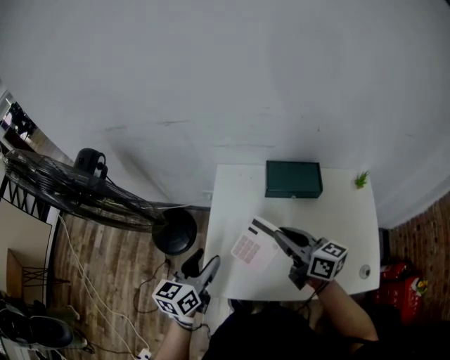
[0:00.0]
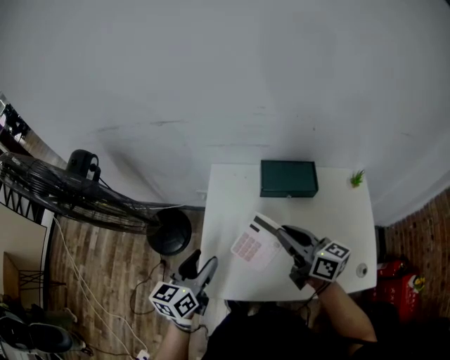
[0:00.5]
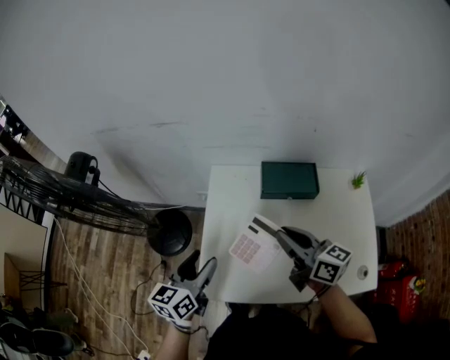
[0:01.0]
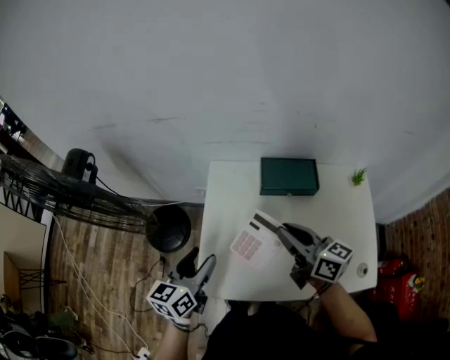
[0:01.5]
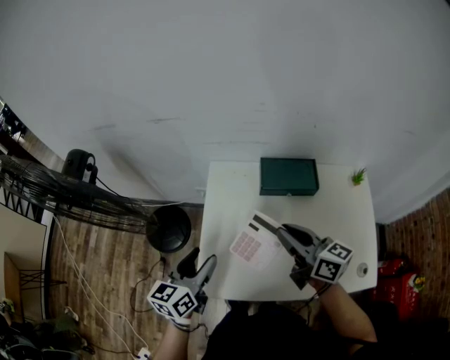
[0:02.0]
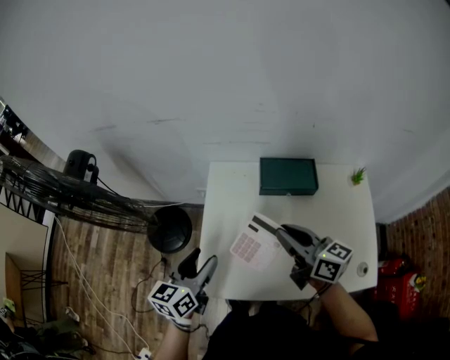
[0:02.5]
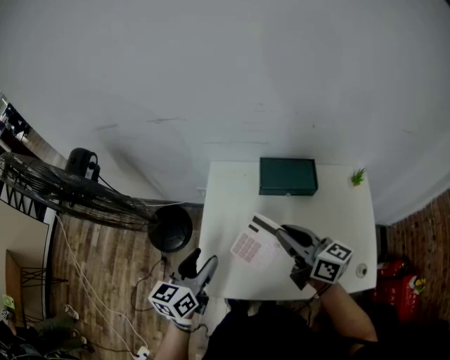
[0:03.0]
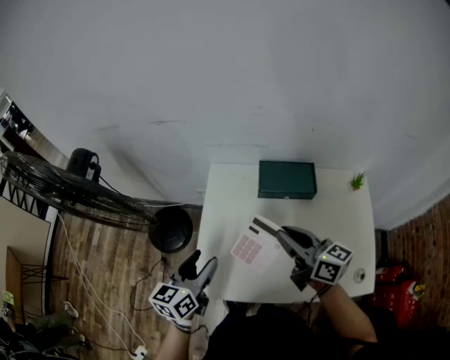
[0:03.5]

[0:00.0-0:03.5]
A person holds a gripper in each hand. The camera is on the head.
0:00.0 to 0:03.5: The grippers move only a little.

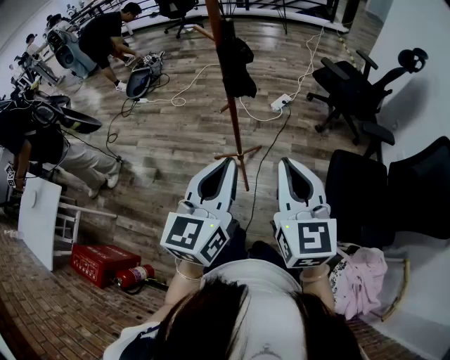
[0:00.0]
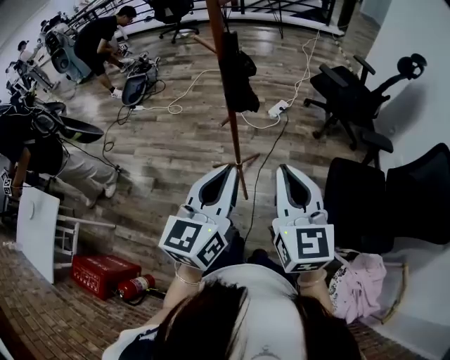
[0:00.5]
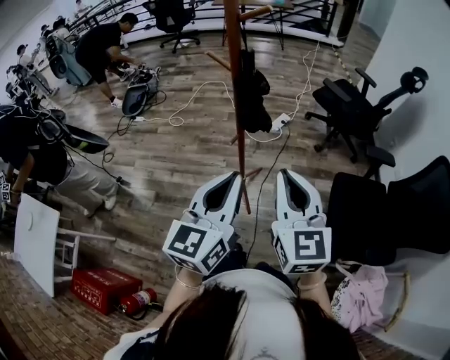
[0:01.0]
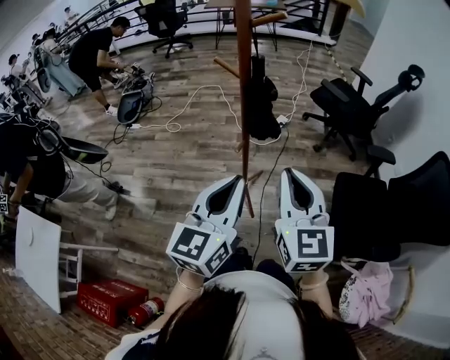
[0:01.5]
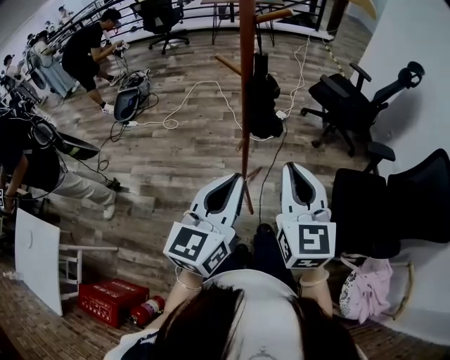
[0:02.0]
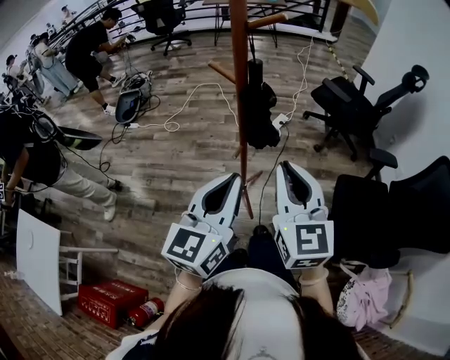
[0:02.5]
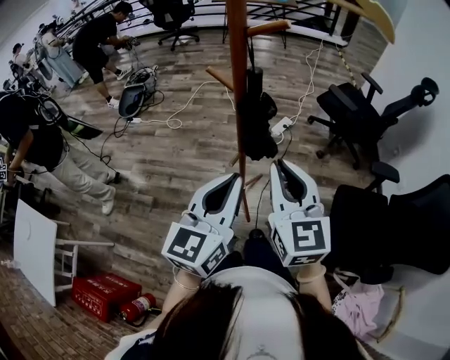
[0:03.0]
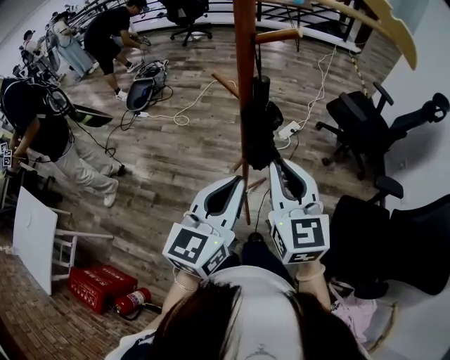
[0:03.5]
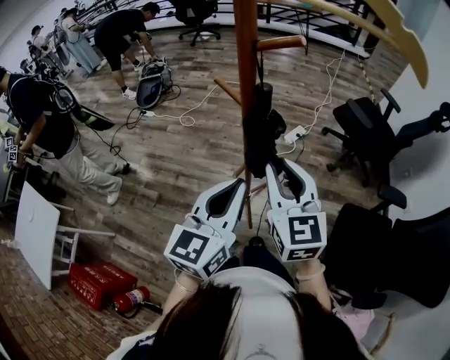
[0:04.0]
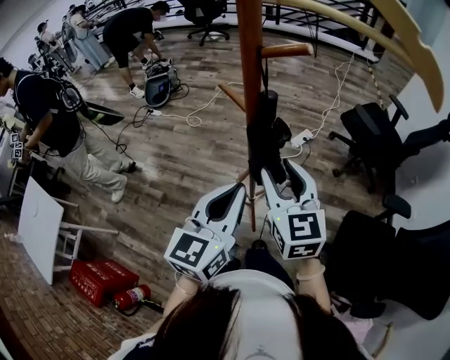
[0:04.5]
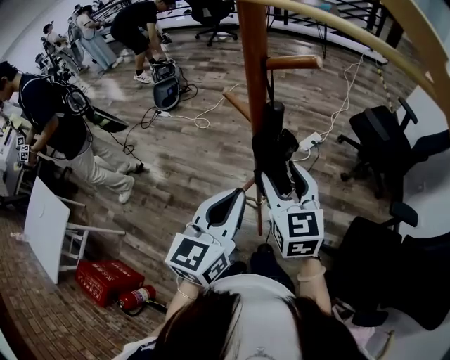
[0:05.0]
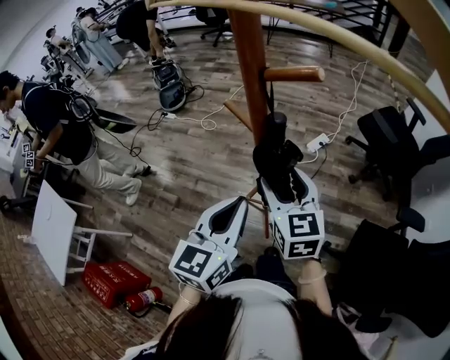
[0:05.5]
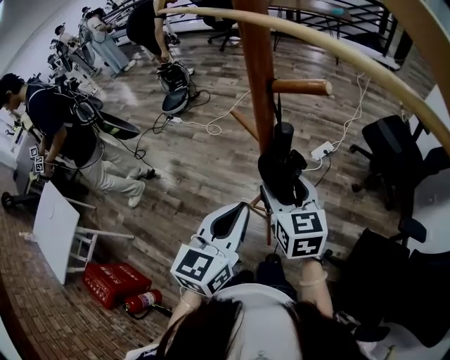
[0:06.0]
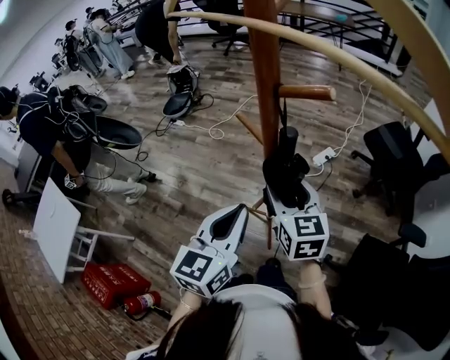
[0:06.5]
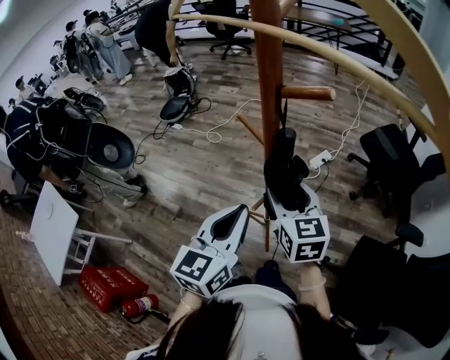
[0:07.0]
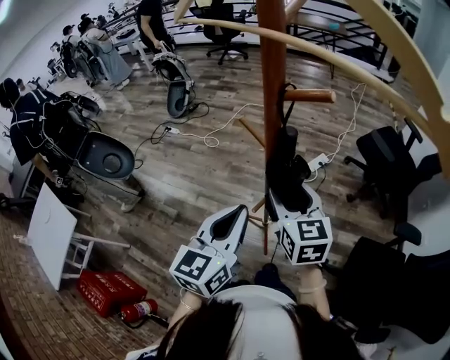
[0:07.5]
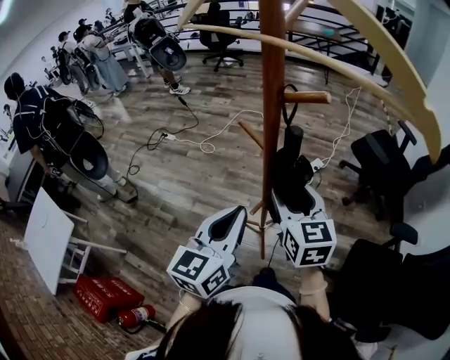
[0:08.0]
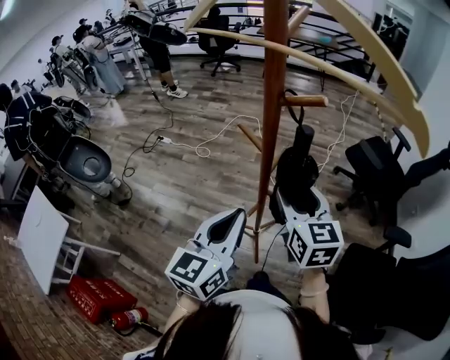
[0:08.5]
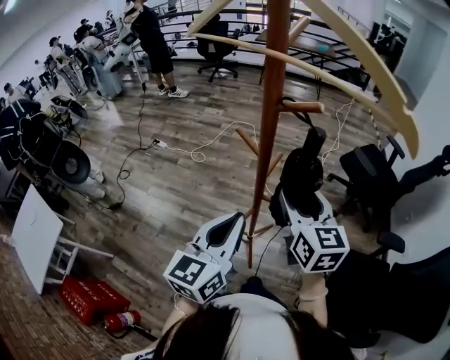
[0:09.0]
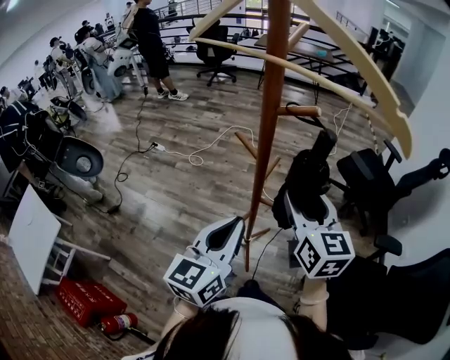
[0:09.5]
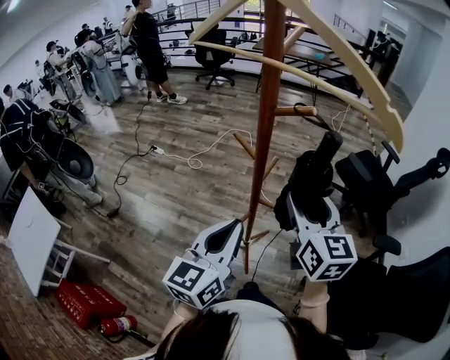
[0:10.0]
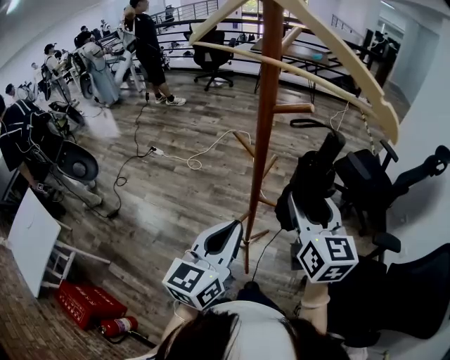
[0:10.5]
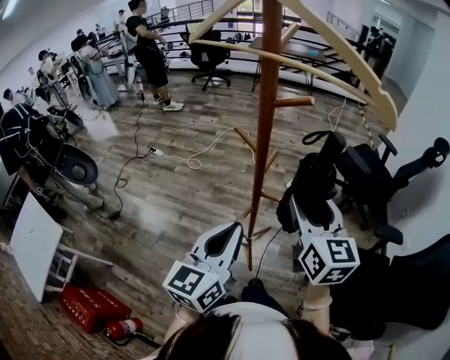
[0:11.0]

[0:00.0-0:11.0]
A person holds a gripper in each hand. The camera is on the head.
0:00.0 to 0:02.0: The grippers both shift to the left and forward by some 15 cm.
0:02.0 to 0:03.5: Both grippers travel together forward, approximately 10 cm.
0:03.5 to 0:05.5: The right gripper shifts some 10 cm forward and downward, and opens up, while the left gripper shifts about 5 cm forward.
0:05.5 to 0:07.5: The grippers make only small movements.
0:07.5 to 0:09.0: The right gripper travels upward by approximately 5 cm.
0:09.0 to 0:11.0: The right gripper travels backward by some 5 cm.

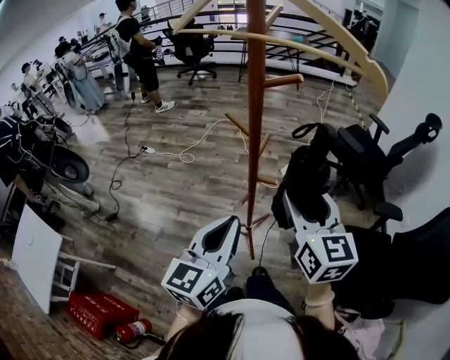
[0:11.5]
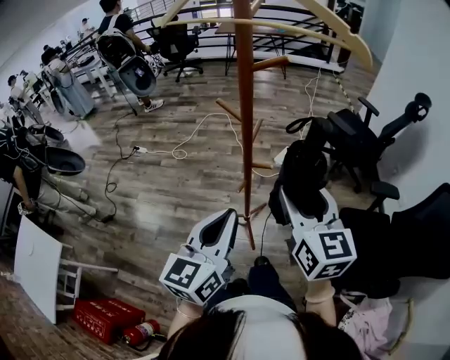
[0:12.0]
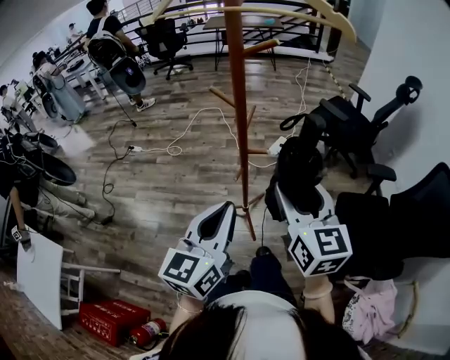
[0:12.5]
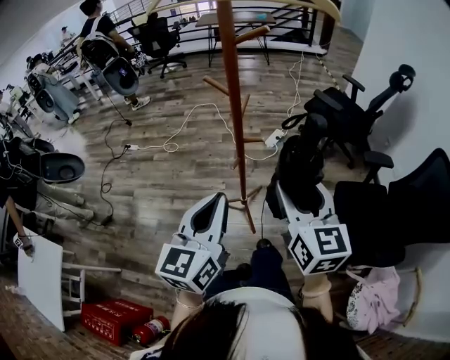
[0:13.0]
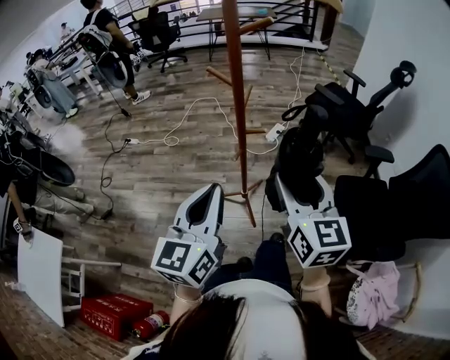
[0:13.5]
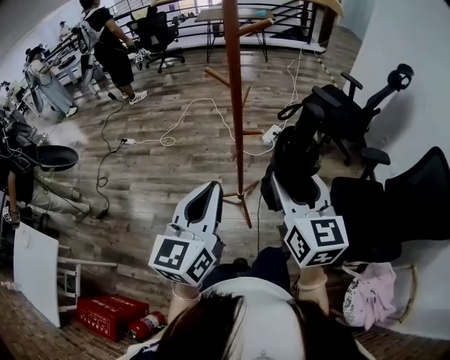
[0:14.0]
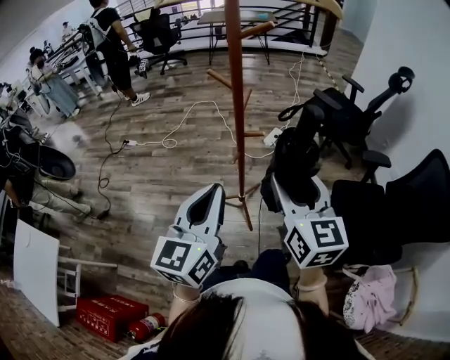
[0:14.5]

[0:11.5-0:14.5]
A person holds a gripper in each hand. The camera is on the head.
0:11.5 to 0:13.0: The left gripper is displaced backward by approximately 5 cm, while the right gripper moves backward, some 10 cm.
0:13.0 to 0:14.5: The grippers make only small movements.

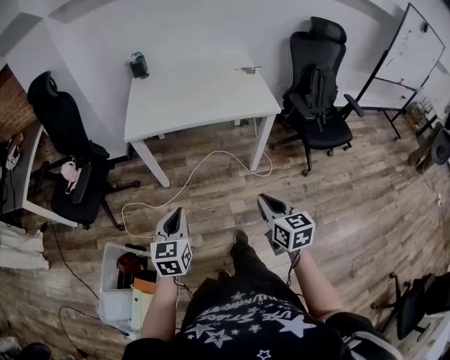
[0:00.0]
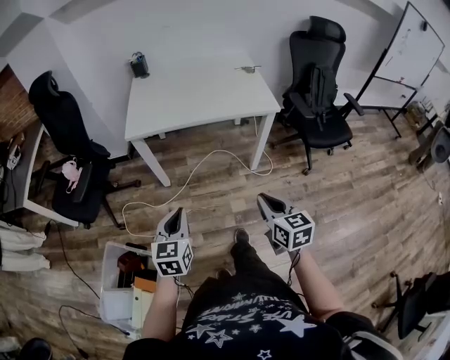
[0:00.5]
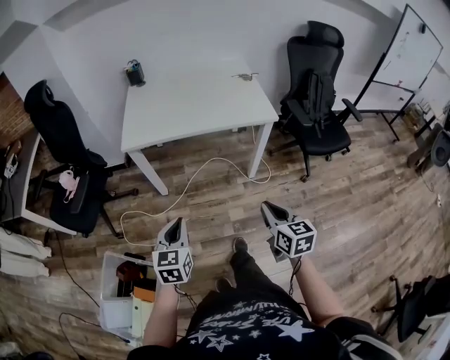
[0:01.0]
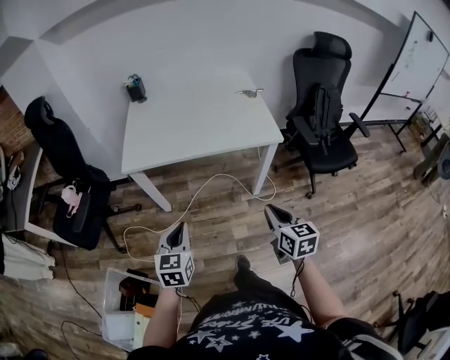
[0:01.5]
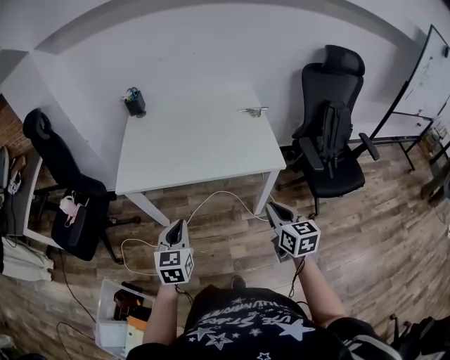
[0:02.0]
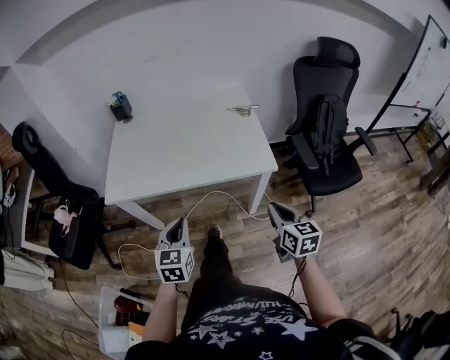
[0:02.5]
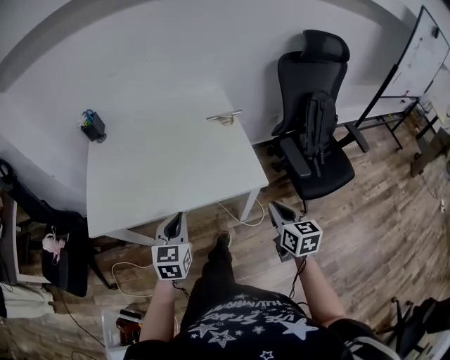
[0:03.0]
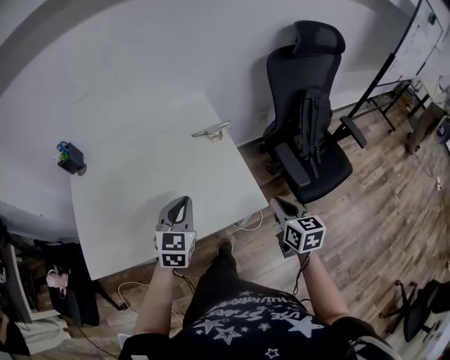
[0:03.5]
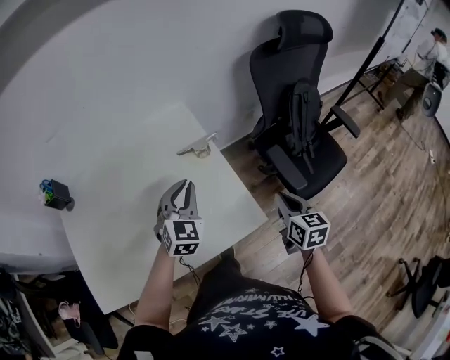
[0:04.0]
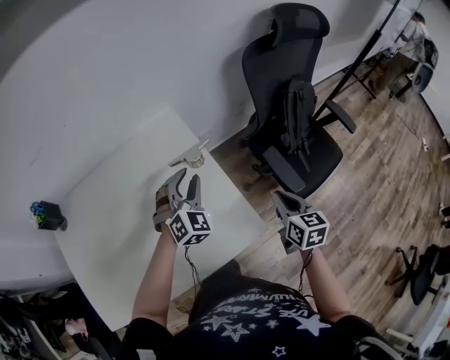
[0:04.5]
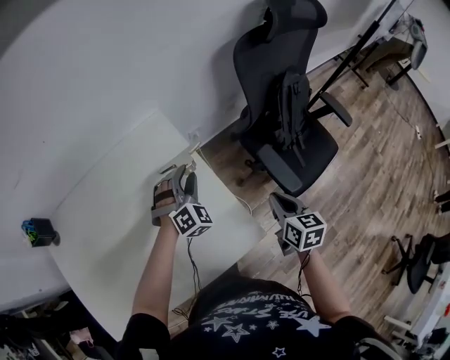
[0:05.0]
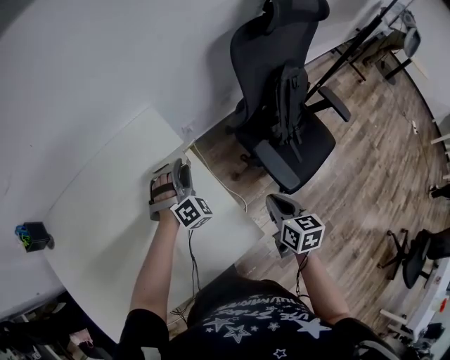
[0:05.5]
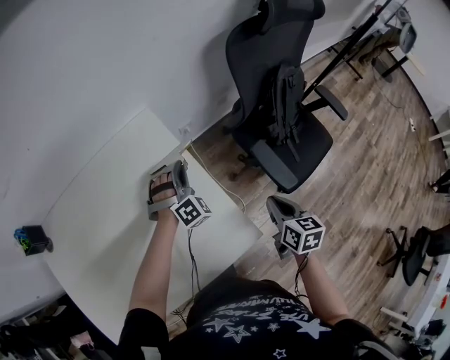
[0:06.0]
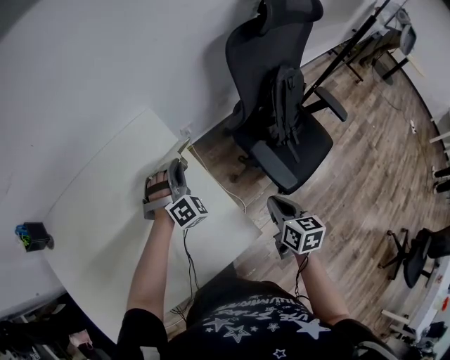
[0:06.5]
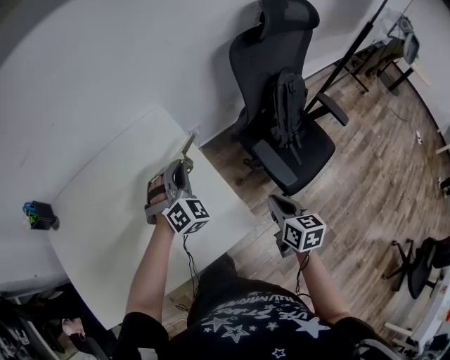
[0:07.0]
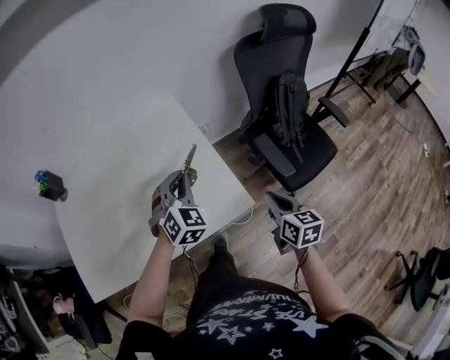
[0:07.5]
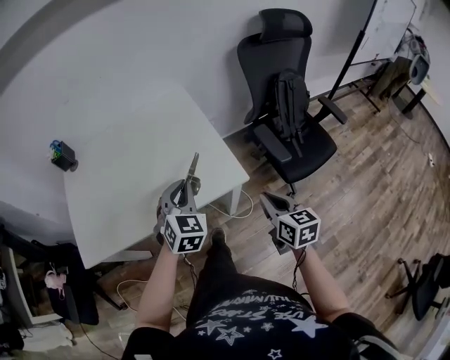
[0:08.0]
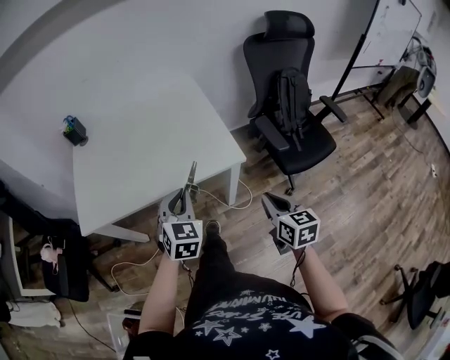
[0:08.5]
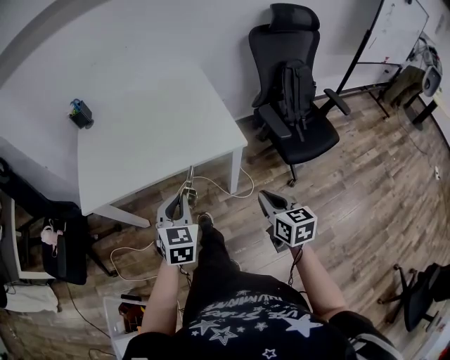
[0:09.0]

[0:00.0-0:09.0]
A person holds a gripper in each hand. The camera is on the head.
0:00.0 to 0:02.0: The two grippers go about 30 cm forward and to the right.
0:02.0 to 0:04.5: Both grippers are carried approximately 60 cm. The left gripper twists roughly 50 degrees clockwise, seen from behind, and opens its fingers, while the right gripper swivels about 30 degrees.
0:04.5 to 0:07.0: The left gripper goes downward and returns, about 10 cm each way, and closes its fingers.
0:07.0 to 0:09.0: Both grippers are carried backward, about 50 cm. The left gripper rolls counterclockwise, seen from behind, by some 40 degrees. Meanwhile the right gripper swivels about 20 degrees.
